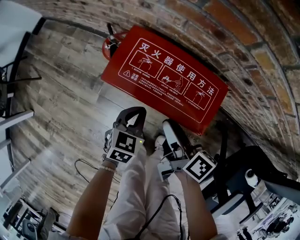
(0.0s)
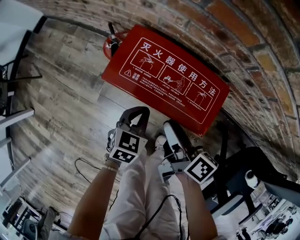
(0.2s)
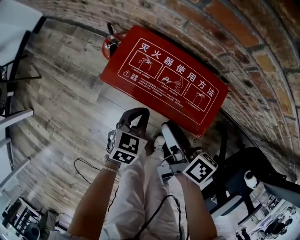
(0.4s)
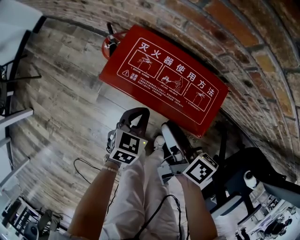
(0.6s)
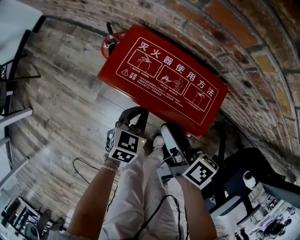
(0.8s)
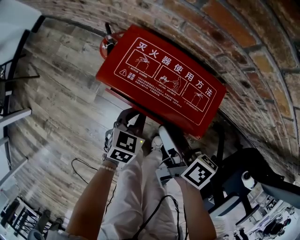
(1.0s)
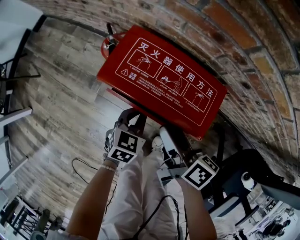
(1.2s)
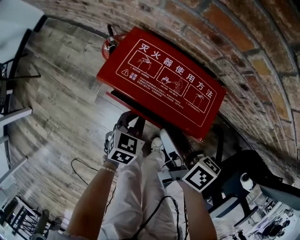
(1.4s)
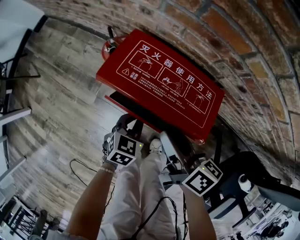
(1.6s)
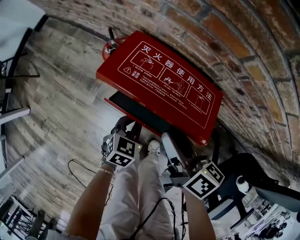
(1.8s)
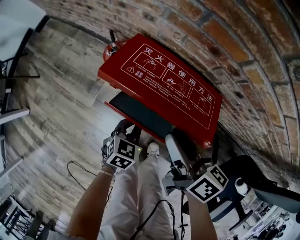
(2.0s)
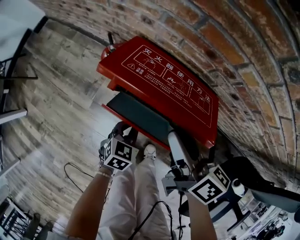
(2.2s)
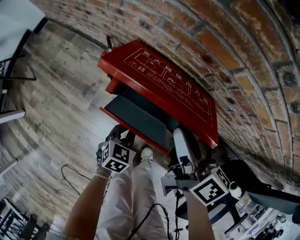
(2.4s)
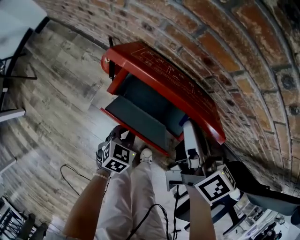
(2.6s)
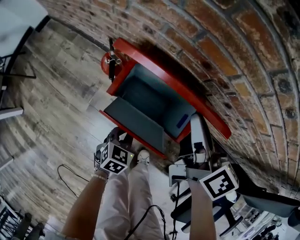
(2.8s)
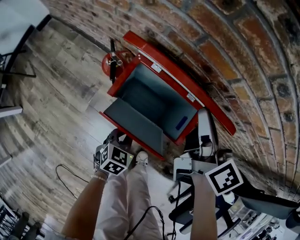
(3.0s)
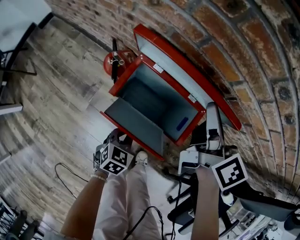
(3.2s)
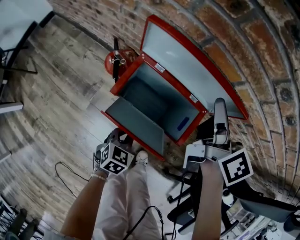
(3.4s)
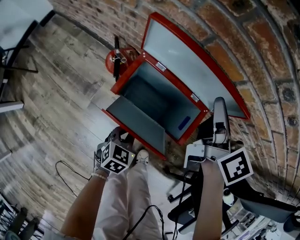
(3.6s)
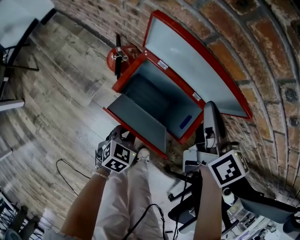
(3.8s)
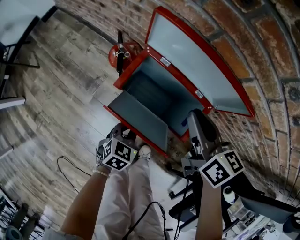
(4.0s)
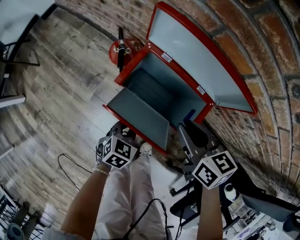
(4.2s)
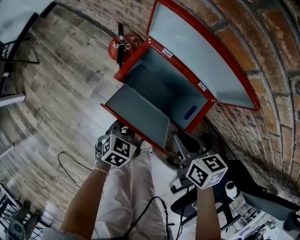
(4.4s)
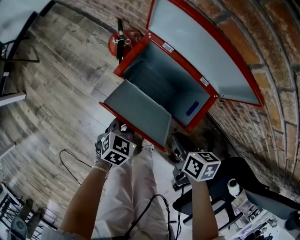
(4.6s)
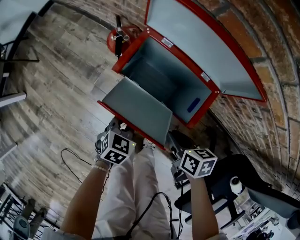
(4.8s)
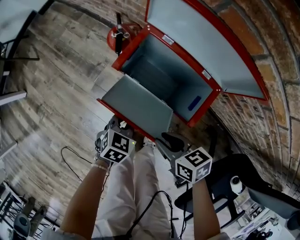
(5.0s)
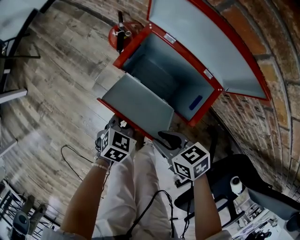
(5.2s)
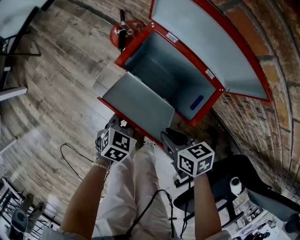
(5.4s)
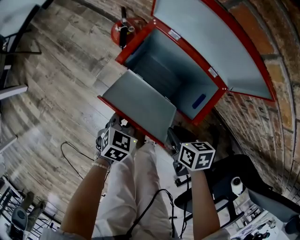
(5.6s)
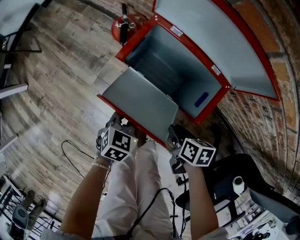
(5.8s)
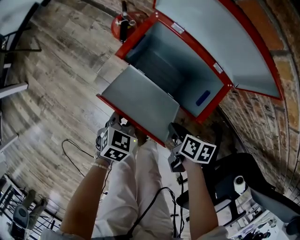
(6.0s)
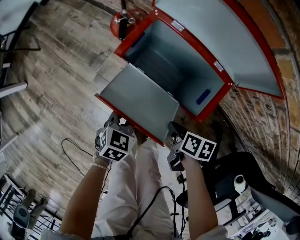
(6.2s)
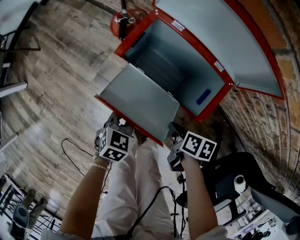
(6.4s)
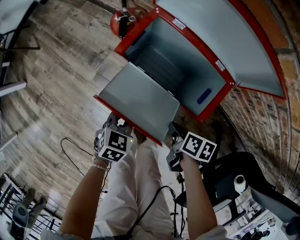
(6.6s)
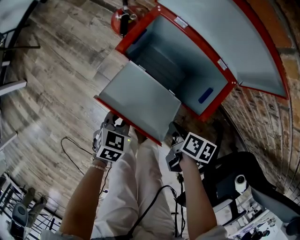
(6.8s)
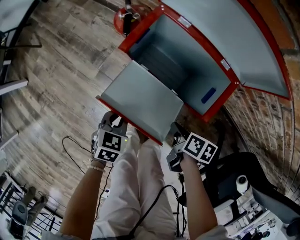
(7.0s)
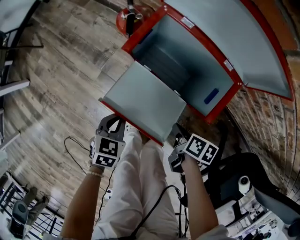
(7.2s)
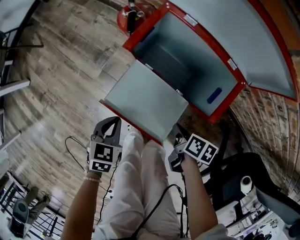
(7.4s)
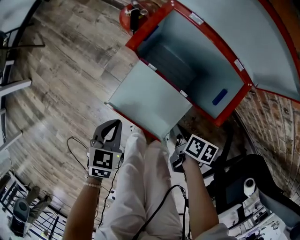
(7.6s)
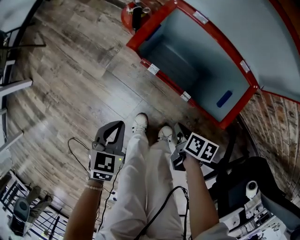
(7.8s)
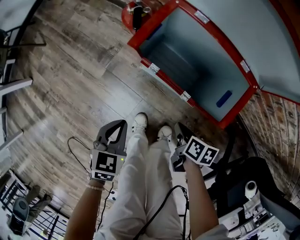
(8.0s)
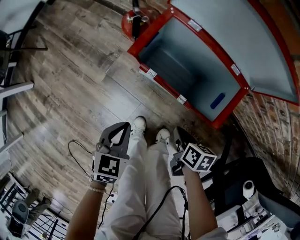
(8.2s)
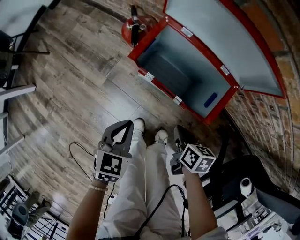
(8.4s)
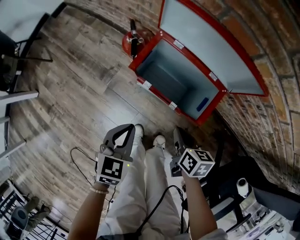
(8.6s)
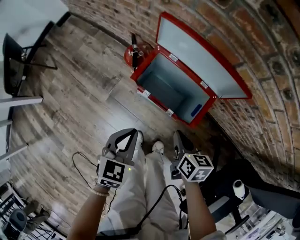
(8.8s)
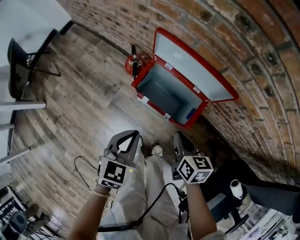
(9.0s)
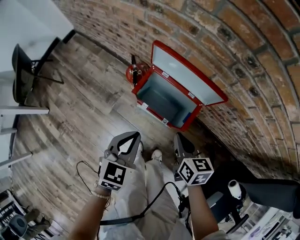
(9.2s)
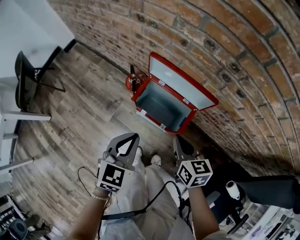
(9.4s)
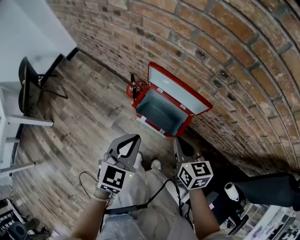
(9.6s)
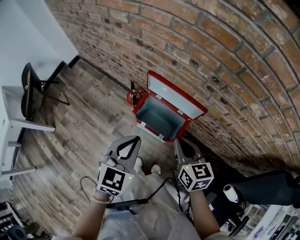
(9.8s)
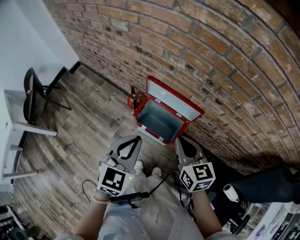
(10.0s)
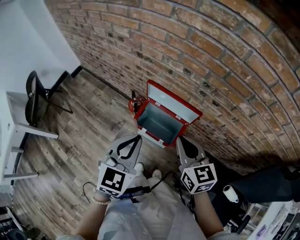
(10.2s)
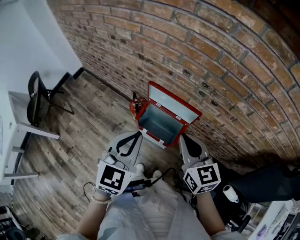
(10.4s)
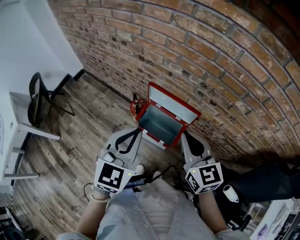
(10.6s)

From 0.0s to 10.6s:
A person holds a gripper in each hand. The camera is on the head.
From 0.0s to 1.6s: The grippers move only a little.
From 1.6s to 3.0s: The right gripper moves forward, upward and to the right, approximately 20 cm, rotates some 20 degrees, and closes.
From 3.0s to 4.6s: The right gripper is displaced downward and backward by approximately 25 cm, and angles its fingers downward, by some 40 degrees.
From 4.6s to 6.0s: The right gripper is displaced downward by roughly 10 cm.
From 6.0s to 7.6s: The right gripper travels downward by roughly 5 cm. The left gripper is displaced to the left by about 10 cm.
From 7.6s to 9.0s: Both grippers move upward, about 25 cm. The right gripper swivels roughly 40 degrees; the left gripper rotates roughly 20 degrees.
From 9.0s to 10.6s: The two grippers go approximately 35 cm upward. The left gripper swivels about 30 degrees; the right gripper turns by about 40 degrees.

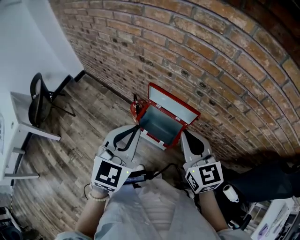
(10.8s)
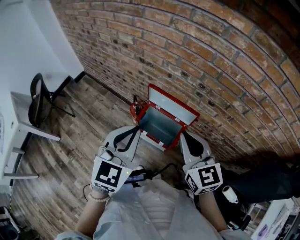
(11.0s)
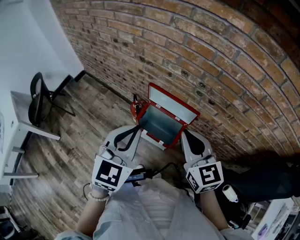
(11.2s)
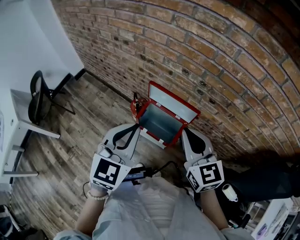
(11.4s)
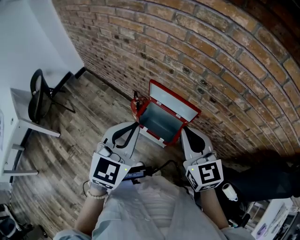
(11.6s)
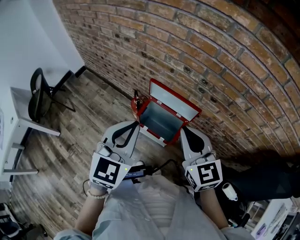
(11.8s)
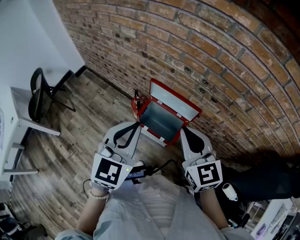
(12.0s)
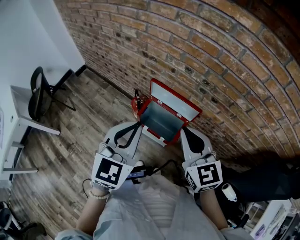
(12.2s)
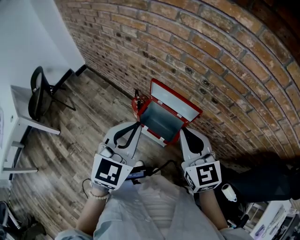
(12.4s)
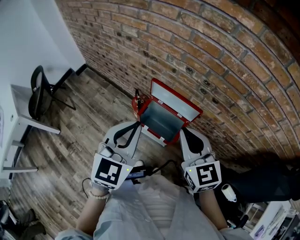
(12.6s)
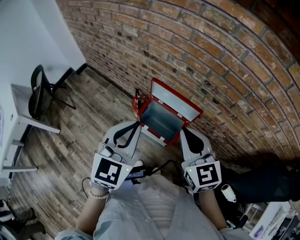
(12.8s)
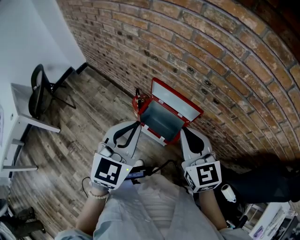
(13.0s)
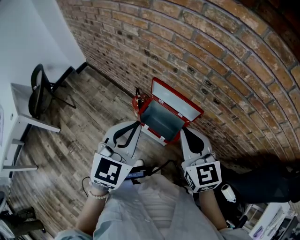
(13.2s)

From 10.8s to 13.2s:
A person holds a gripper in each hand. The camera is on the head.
From 10.8s to 12.0s: The grippers move only a little.
From 12.0s to 13.2s: The two grippers keep their place.

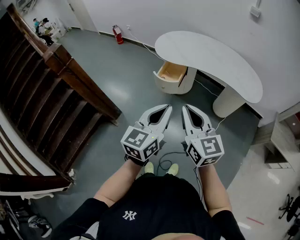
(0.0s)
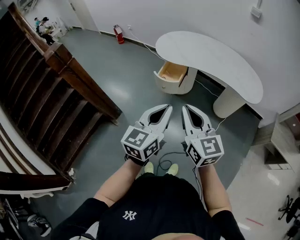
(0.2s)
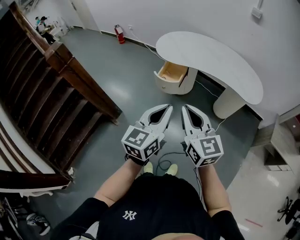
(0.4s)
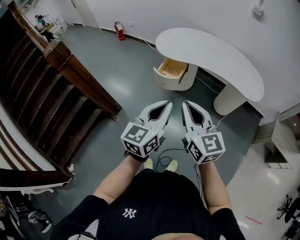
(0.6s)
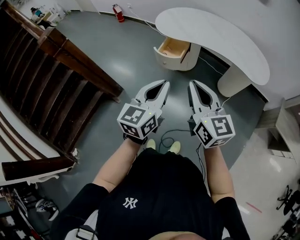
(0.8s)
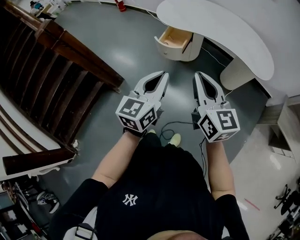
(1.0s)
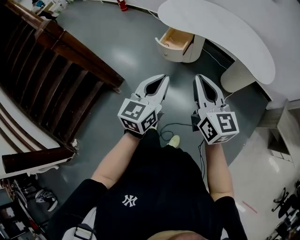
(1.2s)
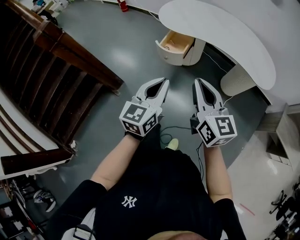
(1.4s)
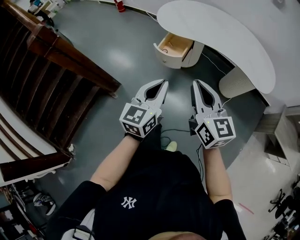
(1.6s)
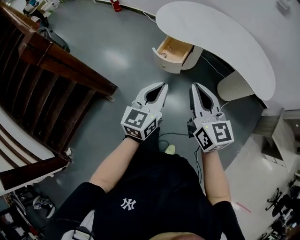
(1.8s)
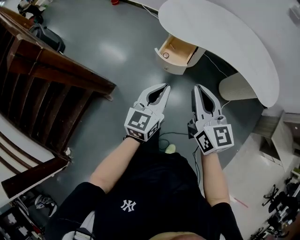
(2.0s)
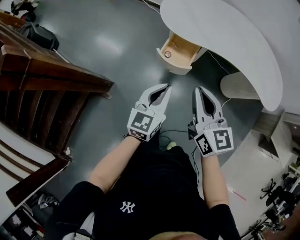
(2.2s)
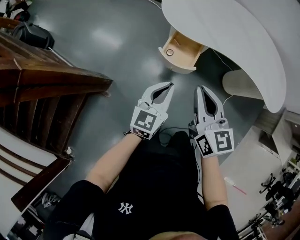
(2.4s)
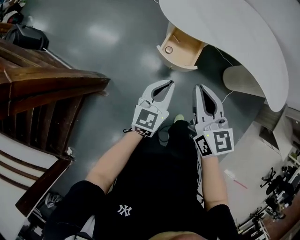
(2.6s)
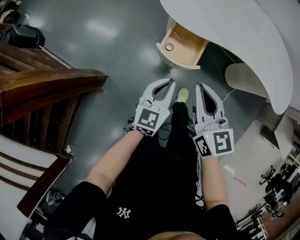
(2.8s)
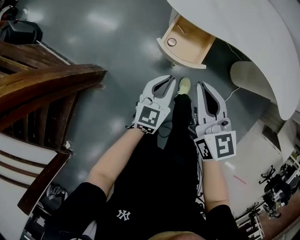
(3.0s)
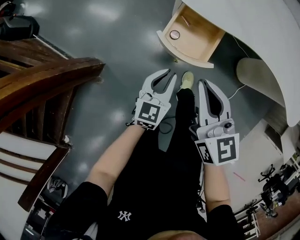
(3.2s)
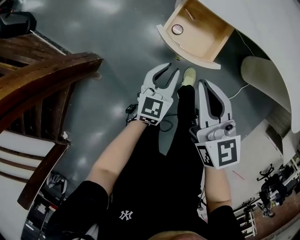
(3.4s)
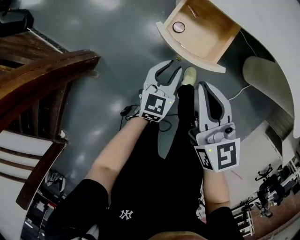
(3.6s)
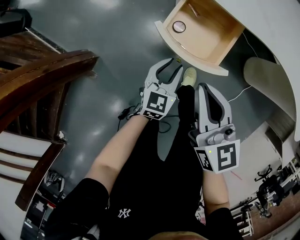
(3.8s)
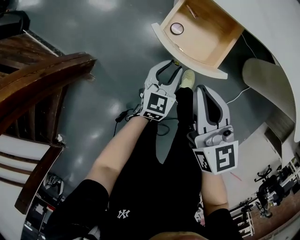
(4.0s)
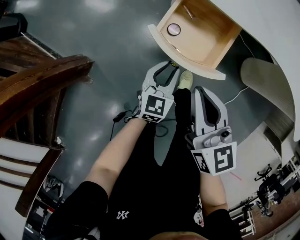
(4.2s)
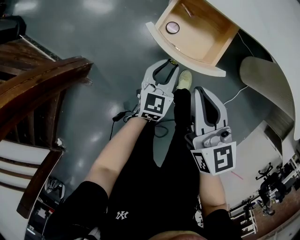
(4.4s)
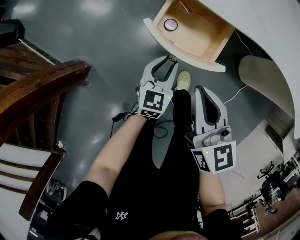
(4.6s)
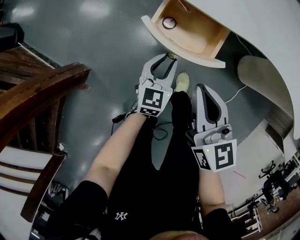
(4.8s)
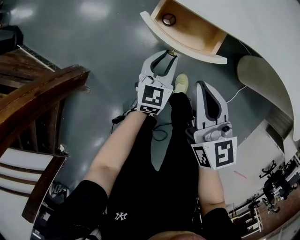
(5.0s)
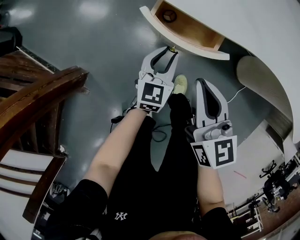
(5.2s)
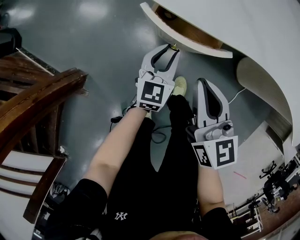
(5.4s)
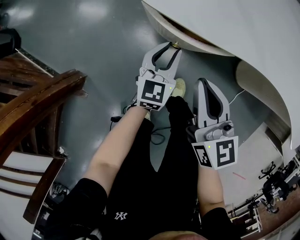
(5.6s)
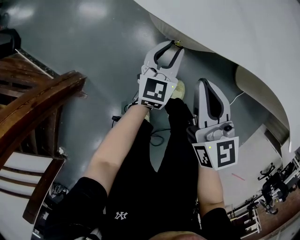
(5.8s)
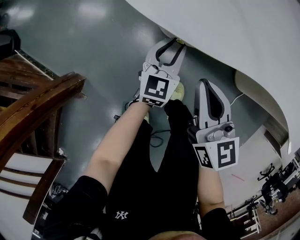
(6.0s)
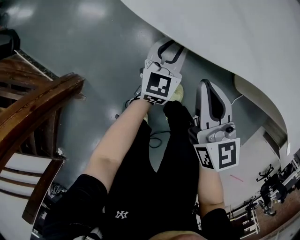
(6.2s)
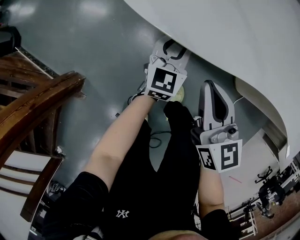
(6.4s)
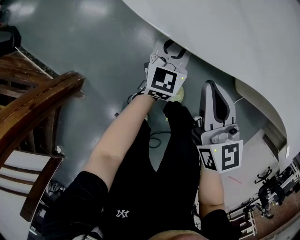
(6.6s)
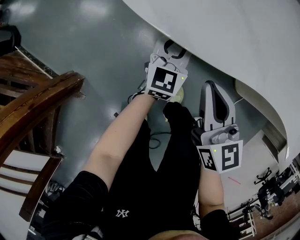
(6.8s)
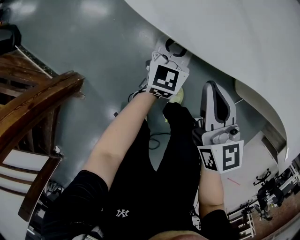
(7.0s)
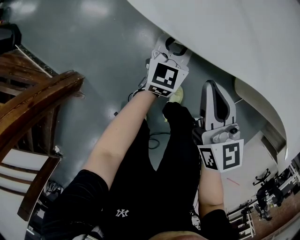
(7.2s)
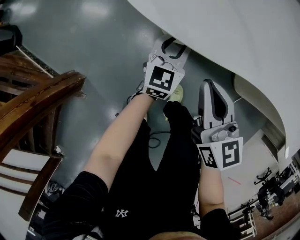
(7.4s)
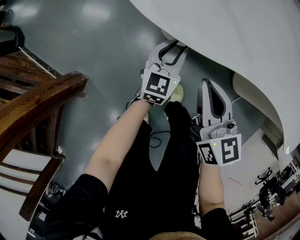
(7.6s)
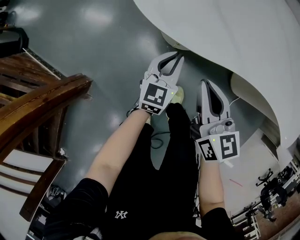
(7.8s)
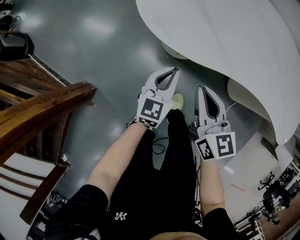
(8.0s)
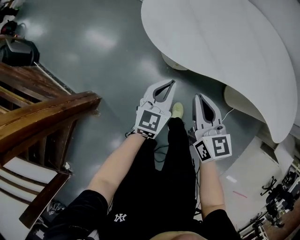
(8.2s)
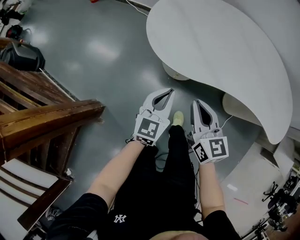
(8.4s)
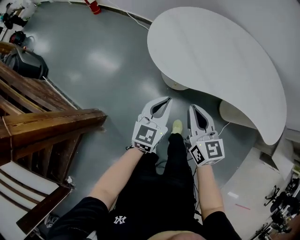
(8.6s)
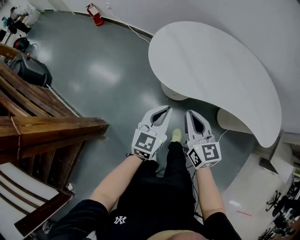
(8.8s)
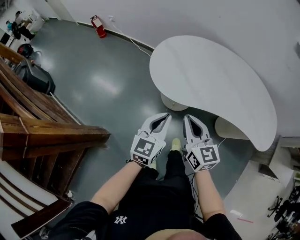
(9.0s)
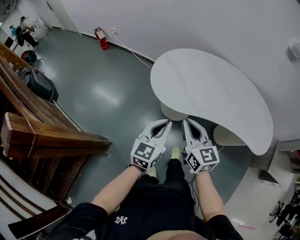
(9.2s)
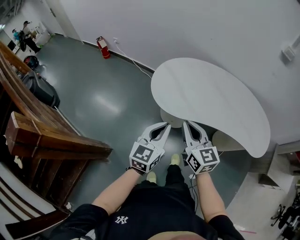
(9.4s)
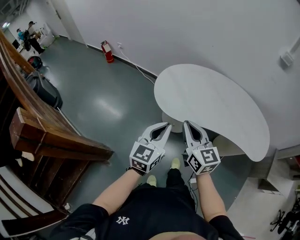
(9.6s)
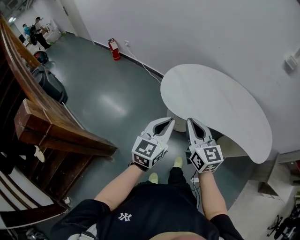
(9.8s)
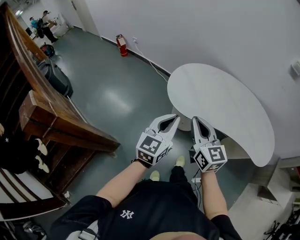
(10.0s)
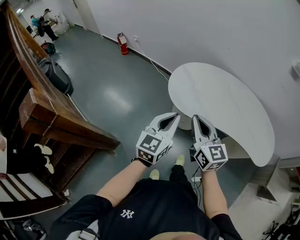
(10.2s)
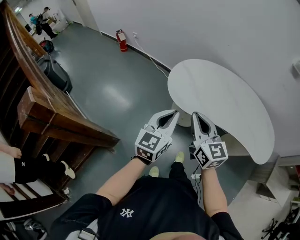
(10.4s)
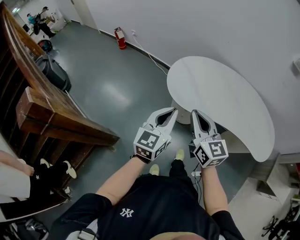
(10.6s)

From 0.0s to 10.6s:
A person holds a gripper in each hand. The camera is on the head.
From 0.0s to 1.6s: The grippers both shift forward and downward by roughly 10 cm.
From 1.6s to 3.0s: The right gripper moves forward, downward and to the left, roughly 40 cm; the left gripper is displaced downward and forward by roughly 40 cm.
From 3.0s to 4.6s: Both grippers travel together downward, about 20 cm. The left gripper opens up.
From 4.6s to 6.0s: Both grippers move forward and to the right, some 15 cm.
From 6.0s to 7.6s: The grippers stay close to where they were, moving slightly.
From 7.6s to 9.0s: Both grippers travel together upward, approximately 35 cm. The left gripper closes its fingers.
From 9.0s to 10.6s: The two grippers go about 15 cm upward.
